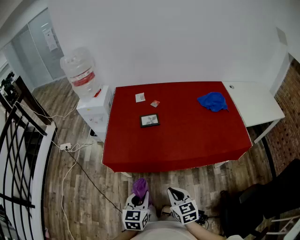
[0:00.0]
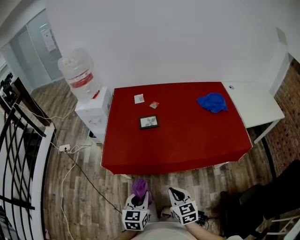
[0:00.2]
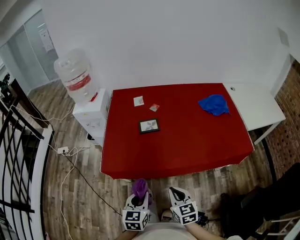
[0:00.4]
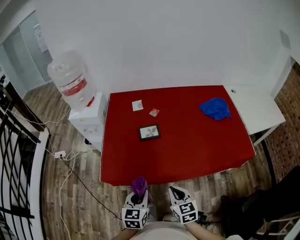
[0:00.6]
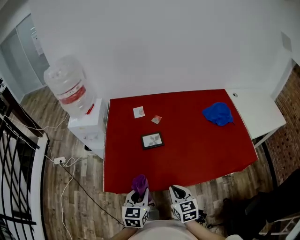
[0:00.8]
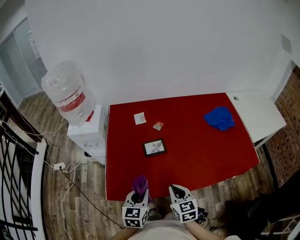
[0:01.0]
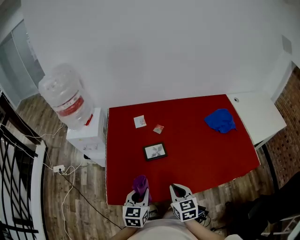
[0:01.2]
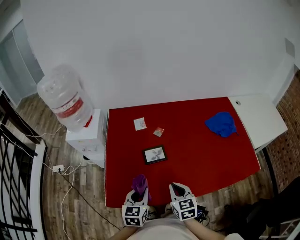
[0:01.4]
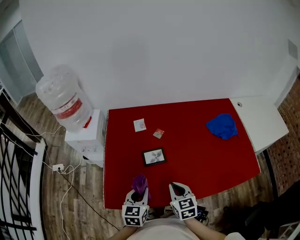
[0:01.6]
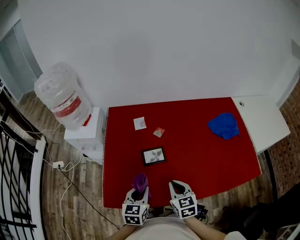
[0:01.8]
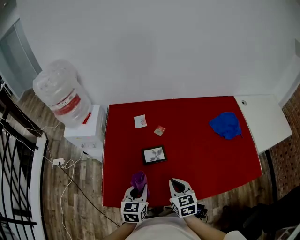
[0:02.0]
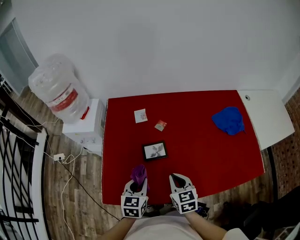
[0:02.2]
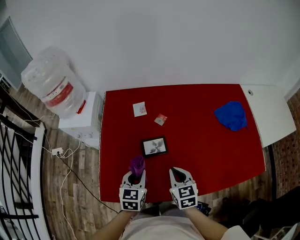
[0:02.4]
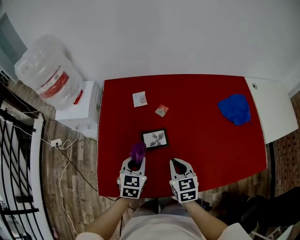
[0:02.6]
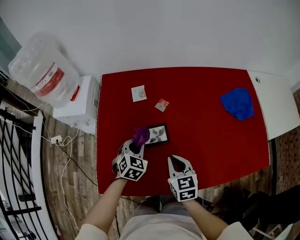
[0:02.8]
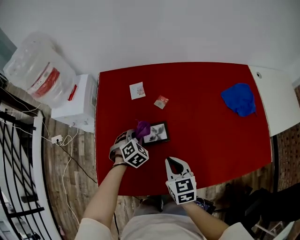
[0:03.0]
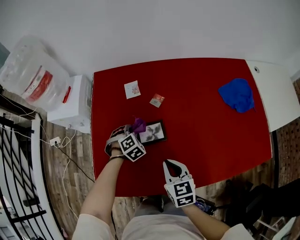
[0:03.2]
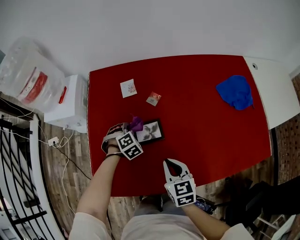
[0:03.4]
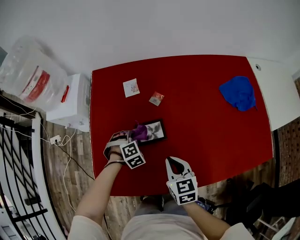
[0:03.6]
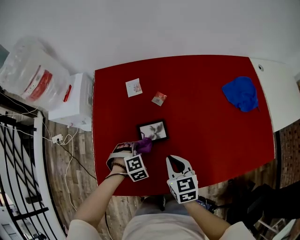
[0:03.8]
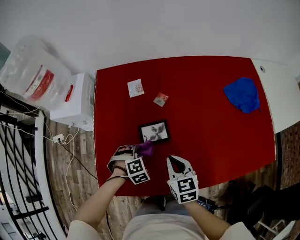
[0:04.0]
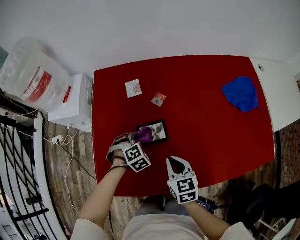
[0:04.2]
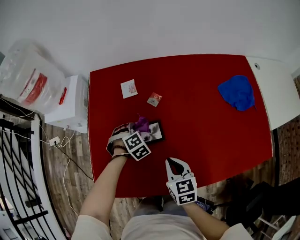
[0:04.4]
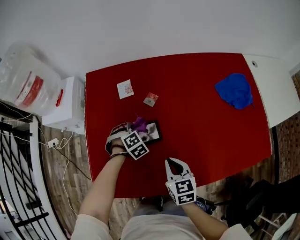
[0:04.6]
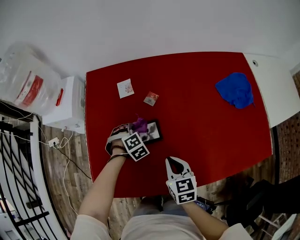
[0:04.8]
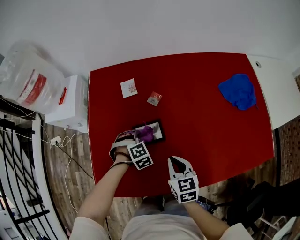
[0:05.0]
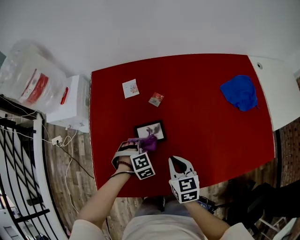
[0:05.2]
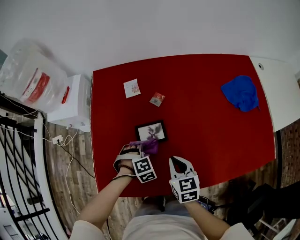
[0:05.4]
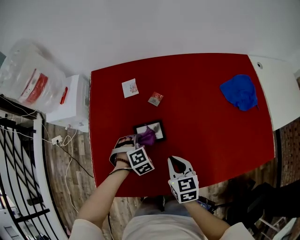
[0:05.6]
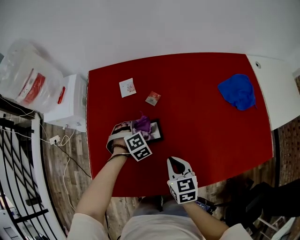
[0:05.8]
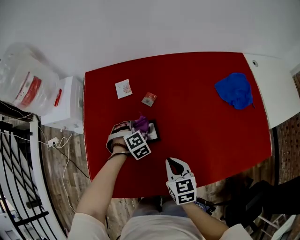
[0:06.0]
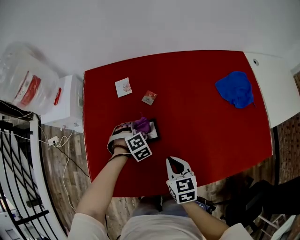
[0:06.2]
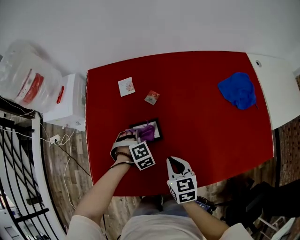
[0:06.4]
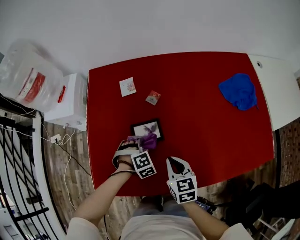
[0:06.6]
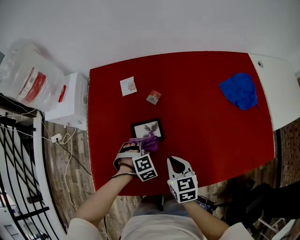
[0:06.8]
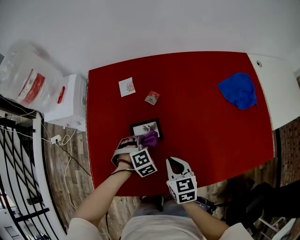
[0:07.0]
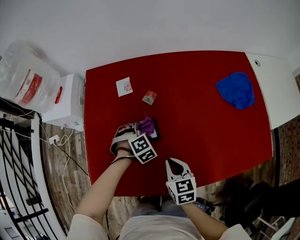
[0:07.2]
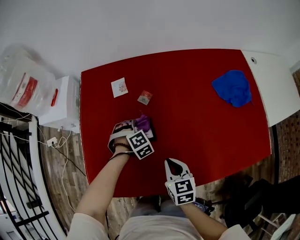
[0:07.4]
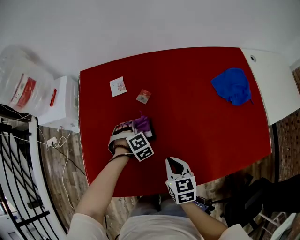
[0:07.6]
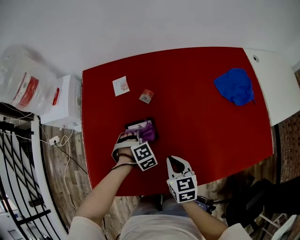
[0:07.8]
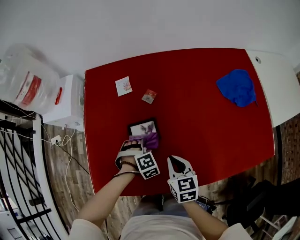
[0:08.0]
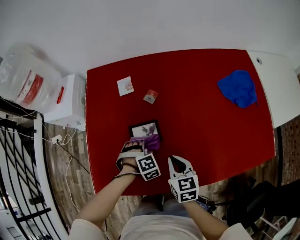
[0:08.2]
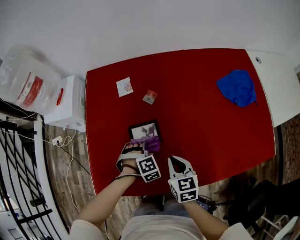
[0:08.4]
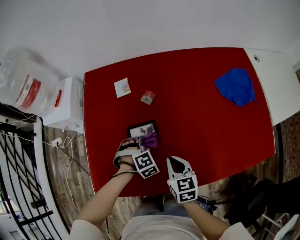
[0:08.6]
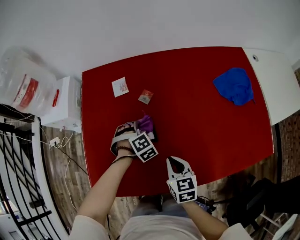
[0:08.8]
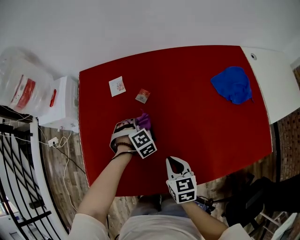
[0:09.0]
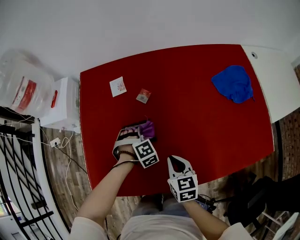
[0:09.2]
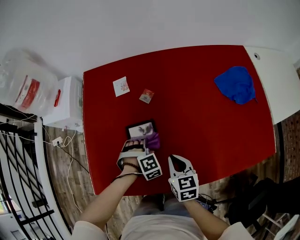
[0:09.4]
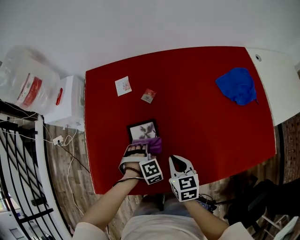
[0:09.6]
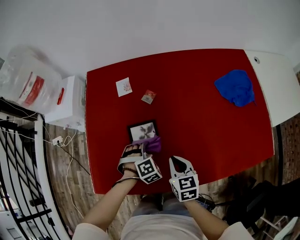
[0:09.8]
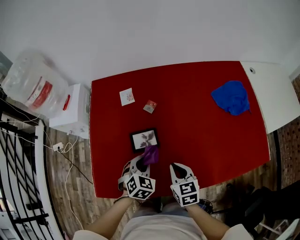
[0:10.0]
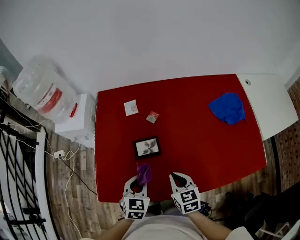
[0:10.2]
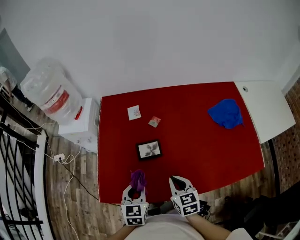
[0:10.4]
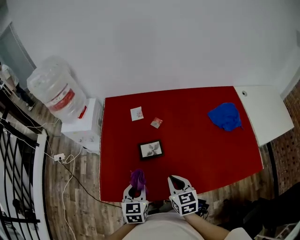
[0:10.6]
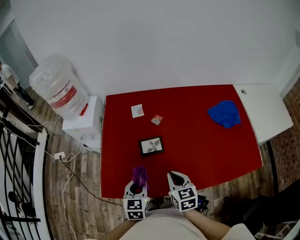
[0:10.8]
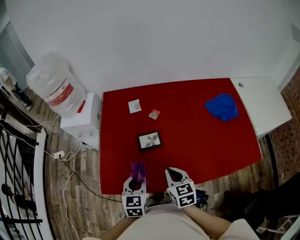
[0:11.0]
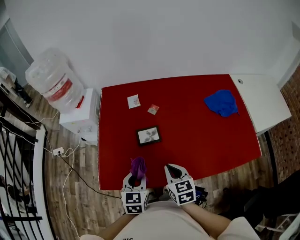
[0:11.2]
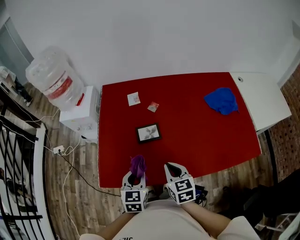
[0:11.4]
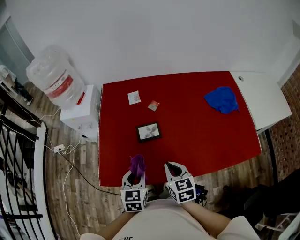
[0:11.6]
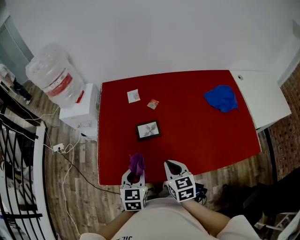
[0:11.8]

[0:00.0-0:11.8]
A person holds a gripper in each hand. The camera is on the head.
0:00.0 to 0:01.4: The grippers both shift forward by some 30 cm.
0:01.4 to 0:03.0: The left gripper heads forward and downward, covering approximately 30 cm, and twists approximately 50 degrees clockwise, seen from behind; the right gripper is displaced forward and downward by roughly 15 cm.
0:03.0 to 0:04.4: The left gripper moves about 10 cm backward and comes back.
0:04.4 to 0:06.0: The left gripper reaches roughly 10 cm backward, then returns.
0:06.0 to 0:07.4: The left gripper goes backward and returns, about 10 cm each way.
0:07.4 to 0:08.8: The left gripper goes backward and returns, approximately 10 cm each way.
0:08.8 to 0:10.4: The left gripper heads backward, upward and to the left, covering roughly 30 cm, and rolls counterclockwise, seen from behind, by about 70 degrees. Meanwhile the right gripper goes roughly 10 cm upward and backward.
0:10.4 to 0:11.8: The right gripper changes place by some 5 cm.

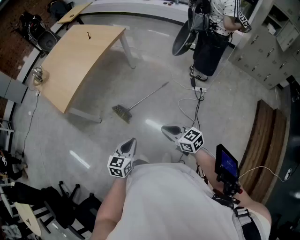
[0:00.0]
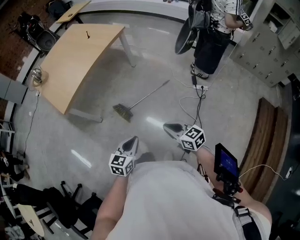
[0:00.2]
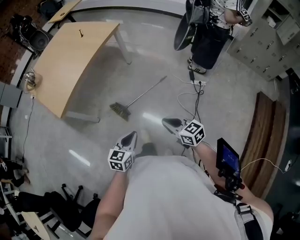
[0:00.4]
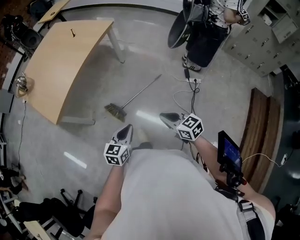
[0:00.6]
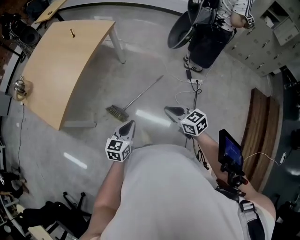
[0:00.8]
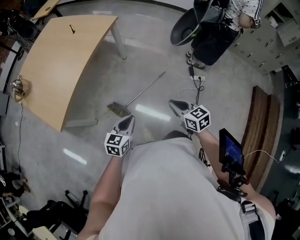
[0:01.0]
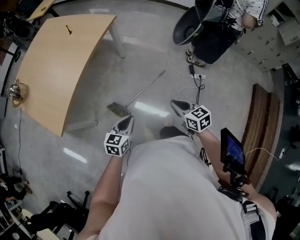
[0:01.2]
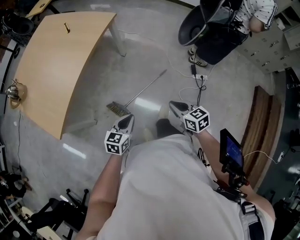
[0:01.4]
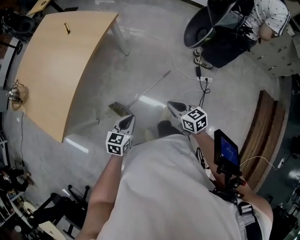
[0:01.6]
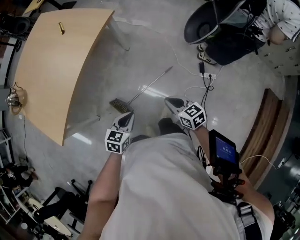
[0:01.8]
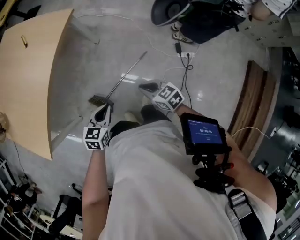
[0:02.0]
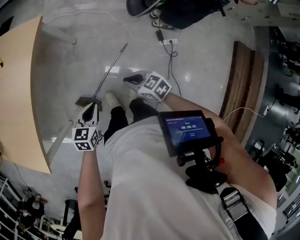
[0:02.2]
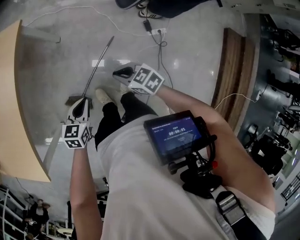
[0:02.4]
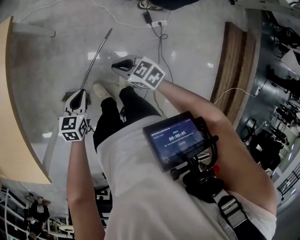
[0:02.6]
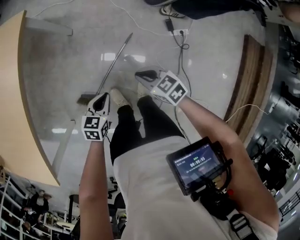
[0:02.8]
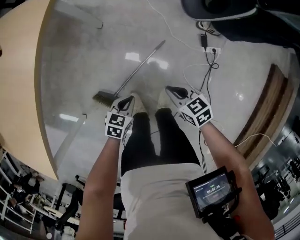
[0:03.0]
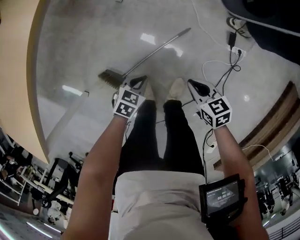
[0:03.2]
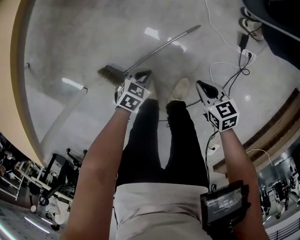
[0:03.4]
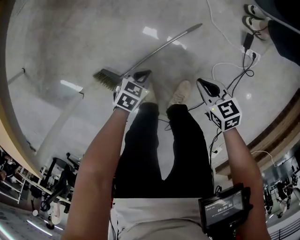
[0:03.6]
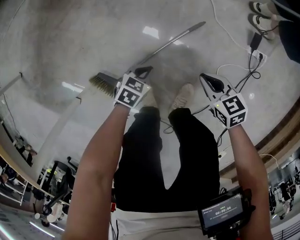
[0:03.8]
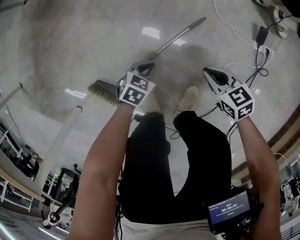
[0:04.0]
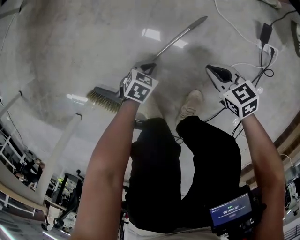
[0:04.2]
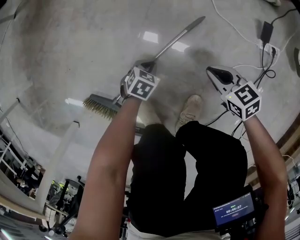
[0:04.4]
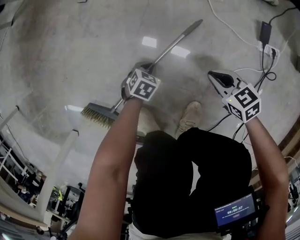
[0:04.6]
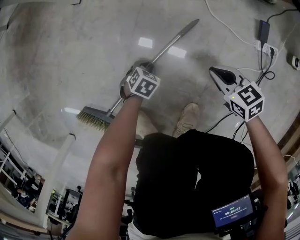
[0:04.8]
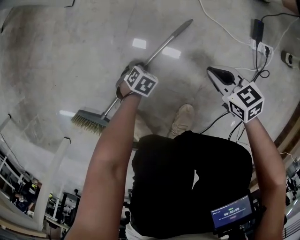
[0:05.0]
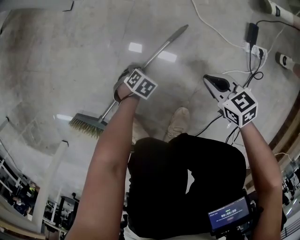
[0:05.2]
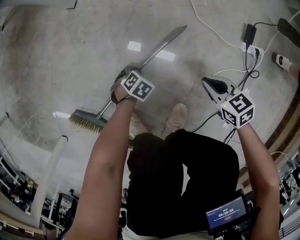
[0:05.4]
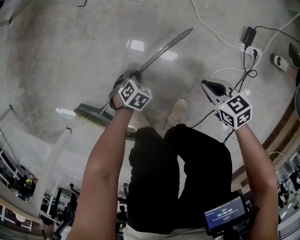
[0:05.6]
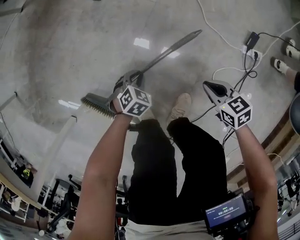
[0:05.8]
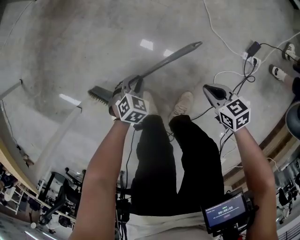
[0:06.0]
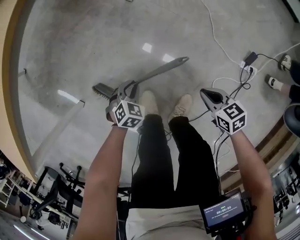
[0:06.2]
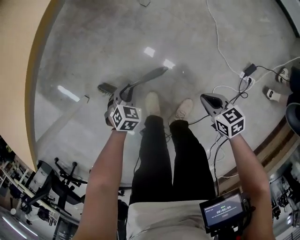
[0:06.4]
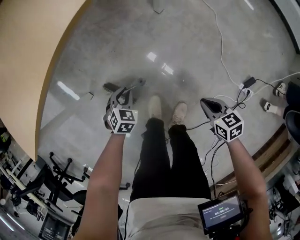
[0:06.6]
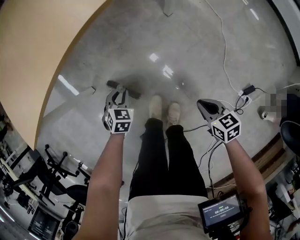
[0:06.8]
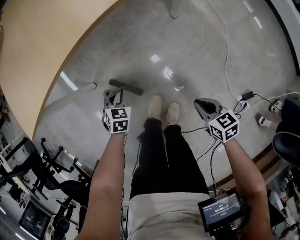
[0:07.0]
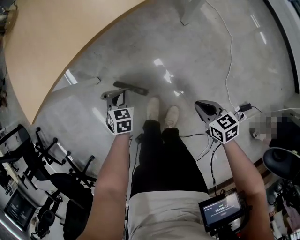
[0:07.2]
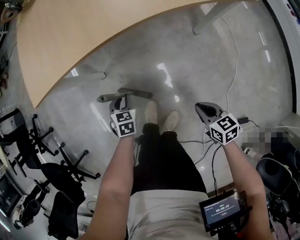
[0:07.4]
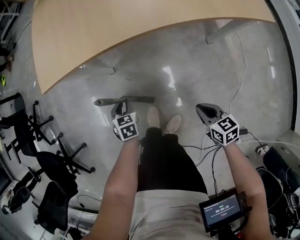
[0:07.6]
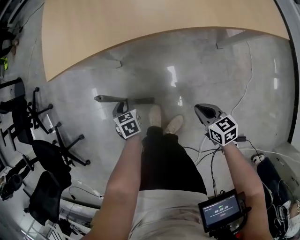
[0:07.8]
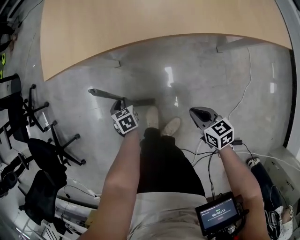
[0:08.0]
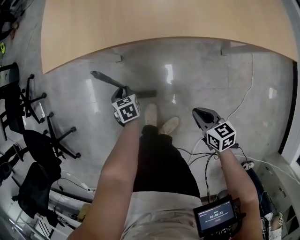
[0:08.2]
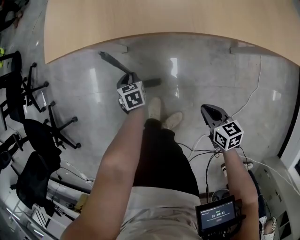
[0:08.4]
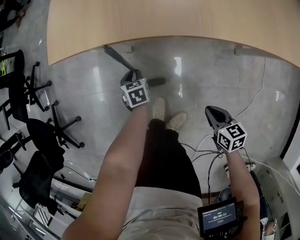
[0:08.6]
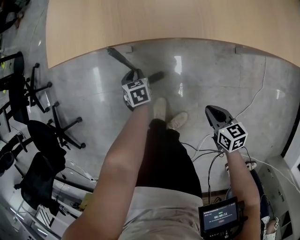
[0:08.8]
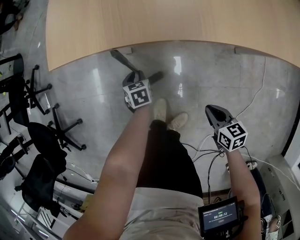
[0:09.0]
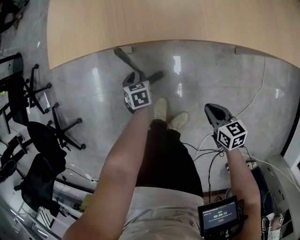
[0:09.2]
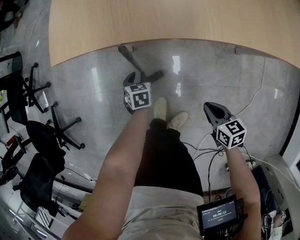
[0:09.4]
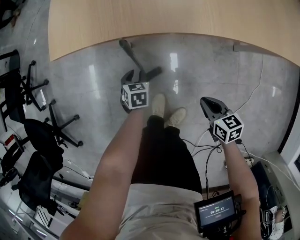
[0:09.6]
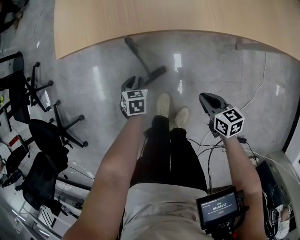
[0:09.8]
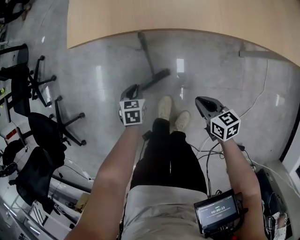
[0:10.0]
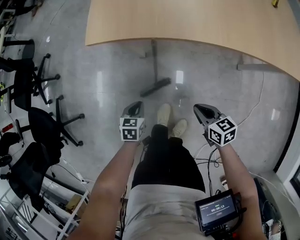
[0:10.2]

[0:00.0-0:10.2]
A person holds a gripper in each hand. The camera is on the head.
0:00.0 to 0:01.4: The two grippers go approximately 30 cm forward. The right gripper swivels roughly 20 degrees.
0:01.4 to 0:03.0: Both grippers travel together downward and forward, some 30 cm. The left gripper turns by roughly 30 degrees.
0:03.0 to 0:04.4: Both grippers move downward, some 40 cm.
0:04.4 to 0:05.8: The grippers both shift upward by about 10 cm.
0:05.8 to 0:07.2: The right gripper shifts by roughly 30 cm, and rotates some 30 degrees; the left gripper shifts by about 40 cm, and twists approximately 60 degrees counterclockwise, seen from behind.
0:07.2 to 0:08.8: The right gripper changes place by some 15 cm. The left gripper moves some 15 cm, and rotates around the line of its fingers by approximately 40 degrees, counterclockwise from behind.
0:08.8 to 0:10.2: The right gripper shifts roughly 10 cm to the left, while the left gripper is displaced backward, to the left and upward by about 15 cm.

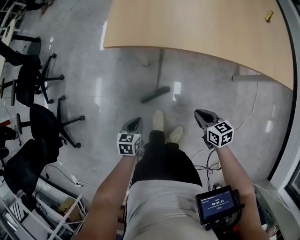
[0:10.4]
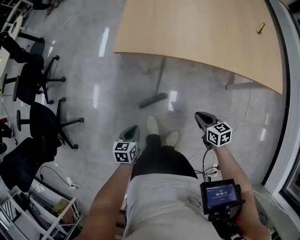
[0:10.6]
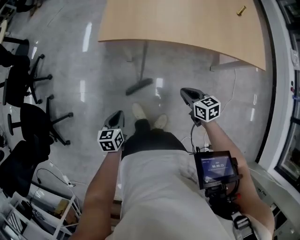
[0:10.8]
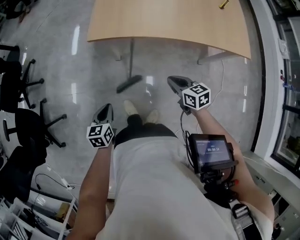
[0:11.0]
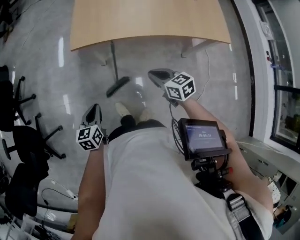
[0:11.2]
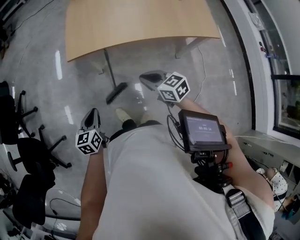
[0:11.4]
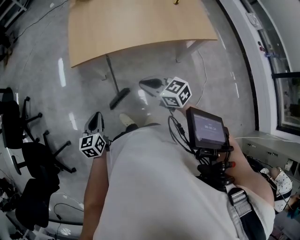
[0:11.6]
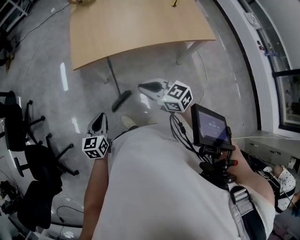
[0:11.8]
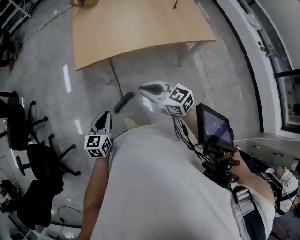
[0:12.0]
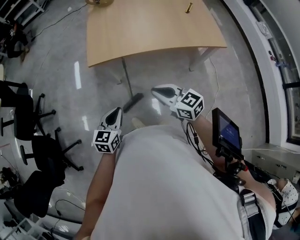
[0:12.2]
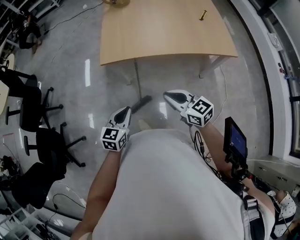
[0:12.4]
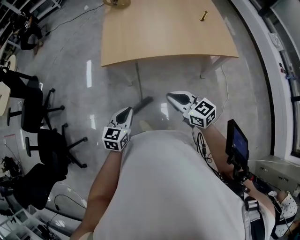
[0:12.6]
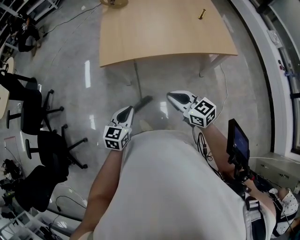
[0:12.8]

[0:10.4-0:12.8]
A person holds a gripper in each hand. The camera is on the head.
0:10.4 to 0:11.6: Both grippers travel together upward, some 25 cm. The right gripper changes its angle by about 20 degrees, while the left gripper rotates some 20 degrees.
0:11.6 to 0:12.8: The left gripper is displaced to the right and upward by some 10 cm, while the right gripper ends up approximately 5 cm from where it was.
